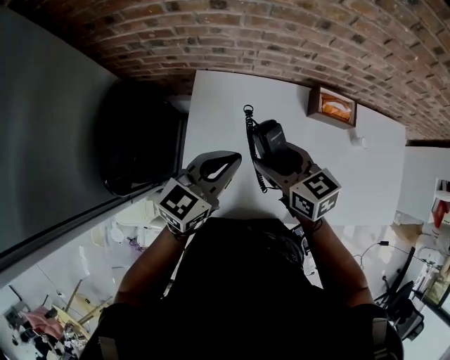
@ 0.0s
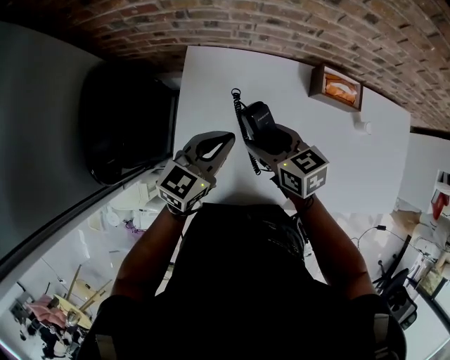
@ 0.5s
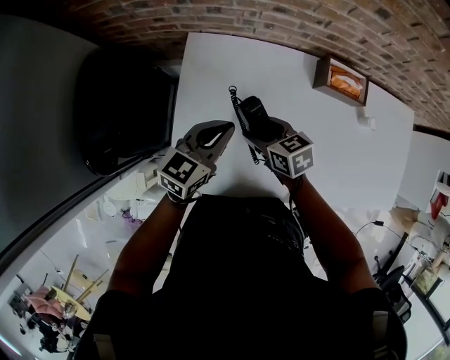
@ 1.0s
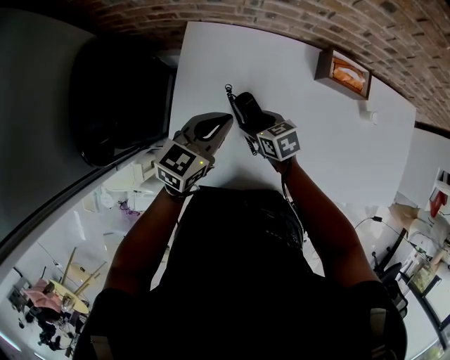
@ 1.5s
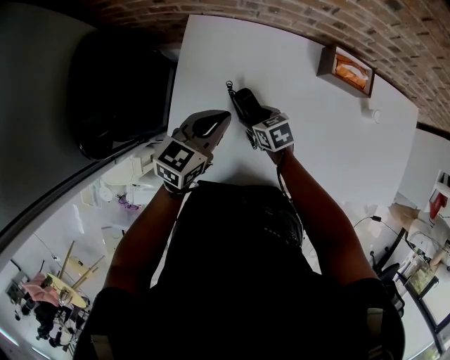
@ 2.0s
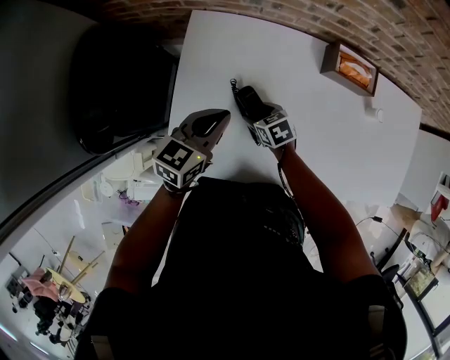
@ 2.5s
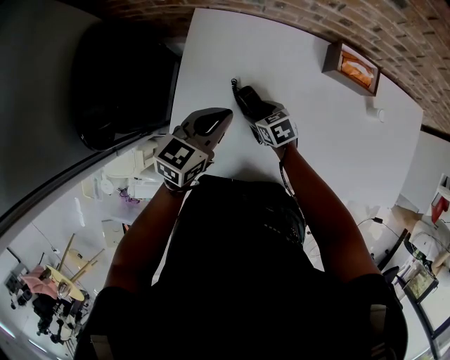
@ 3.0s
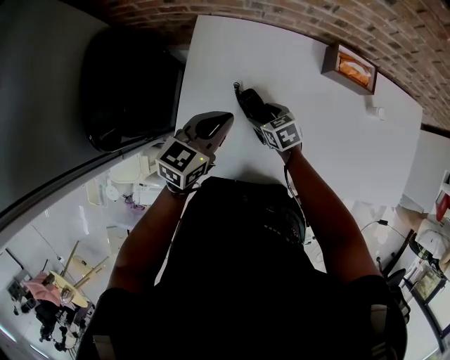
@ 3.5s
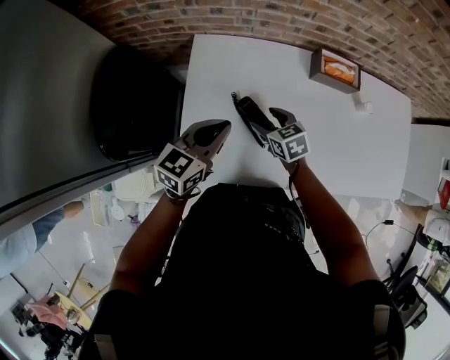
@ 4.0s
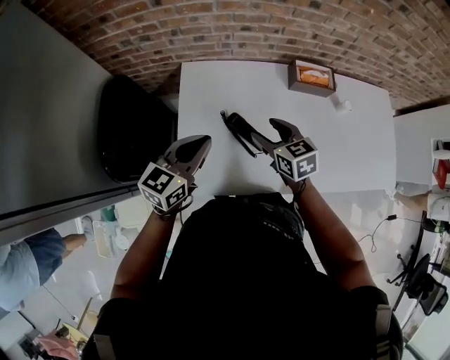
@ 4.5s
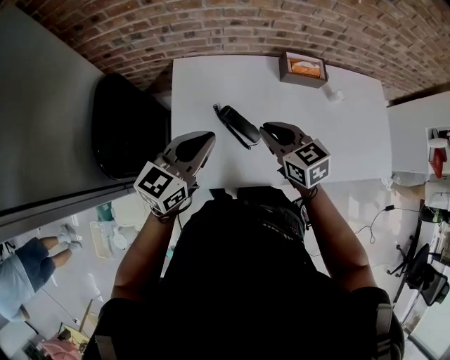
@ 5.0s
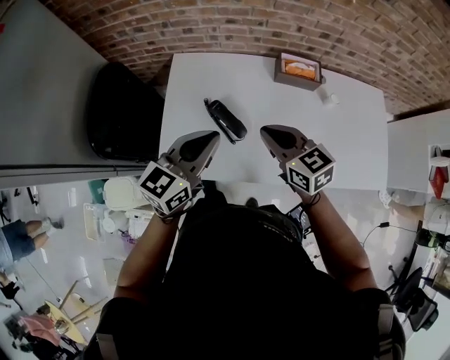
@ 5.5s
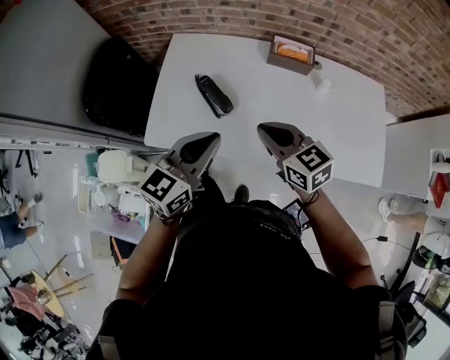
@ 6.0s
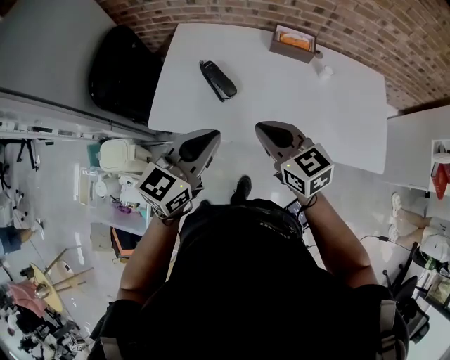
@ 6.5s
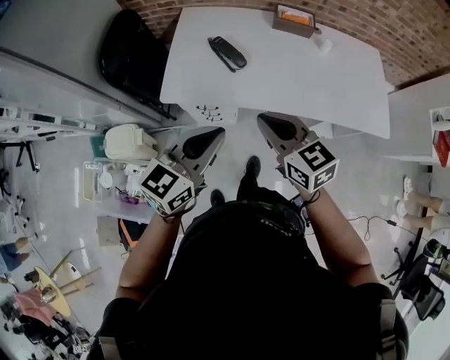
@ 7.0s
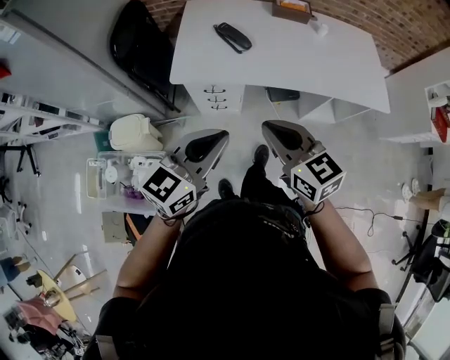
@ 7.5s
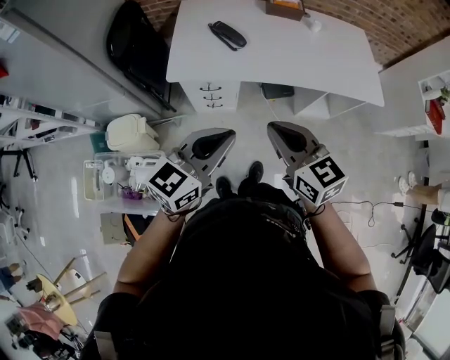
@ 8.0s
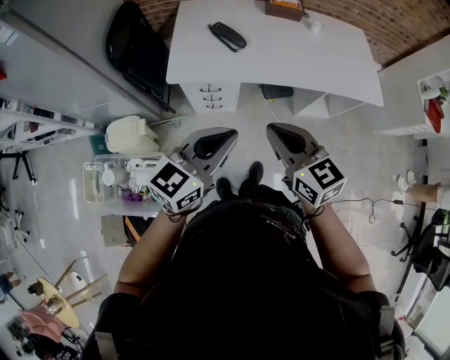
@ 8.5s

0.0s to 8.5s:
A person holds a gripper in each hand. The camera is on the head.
0.0s to 2.0s: The left gripper shifts about 15 cm downward; the right gripper shifts about 30 cm downward, and swivels approximately 30 degrees.
2.0s to 4.0s: The left gripper travels upward by some 5 cm. Meanwhile the right gripper heads upward, covering about 10 cm.
4.0s to 6.5s: The left gripper heads backward, to the right and upward, covering roughly 35 cm. Meanwhile the right gripper shifts some 35 cm backward, upward and to the right, rotates roughly 30 degrees, and closes its fingers.
6.5s to 8.5s: Both grippers move backward, roughly 30 cm.

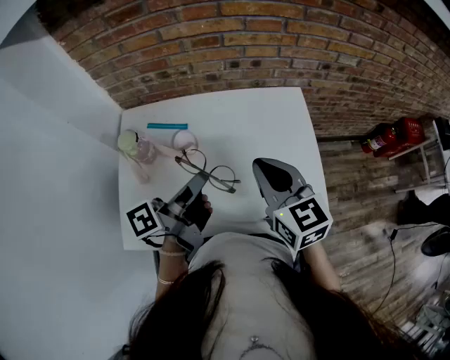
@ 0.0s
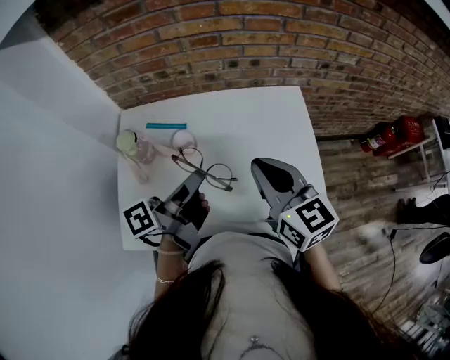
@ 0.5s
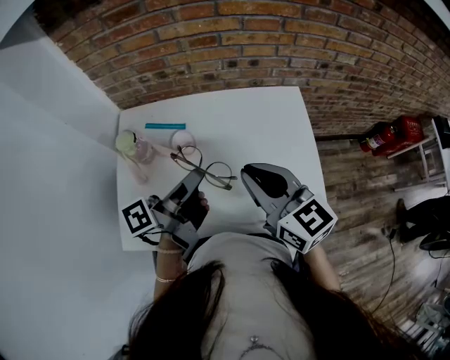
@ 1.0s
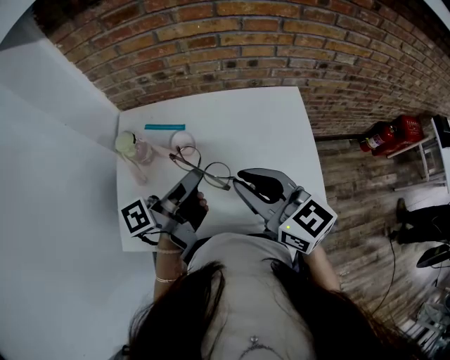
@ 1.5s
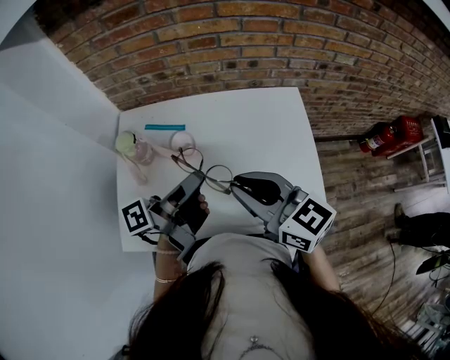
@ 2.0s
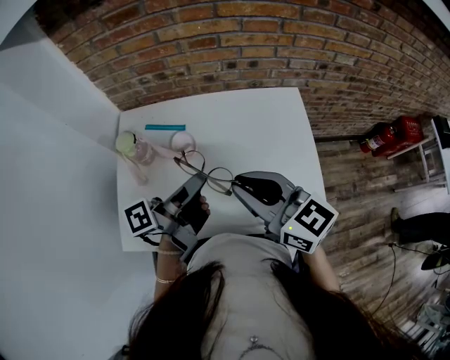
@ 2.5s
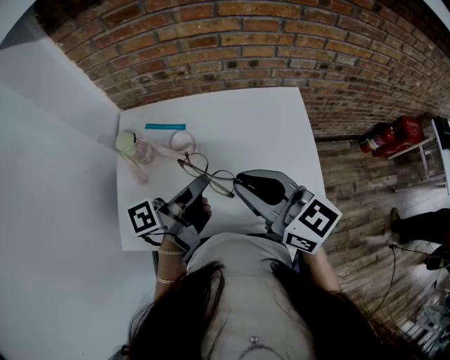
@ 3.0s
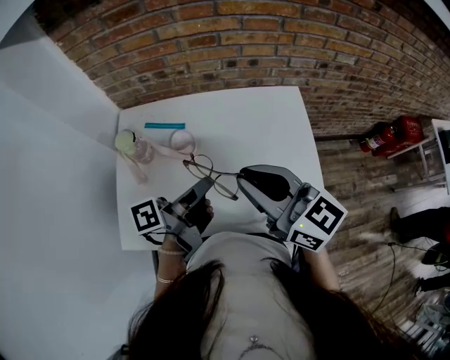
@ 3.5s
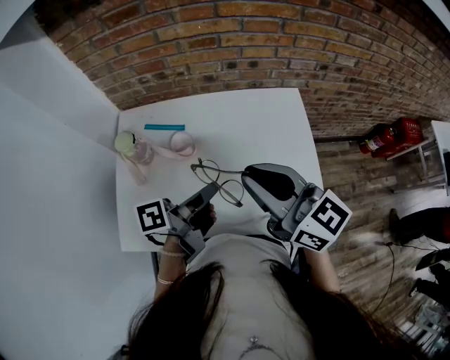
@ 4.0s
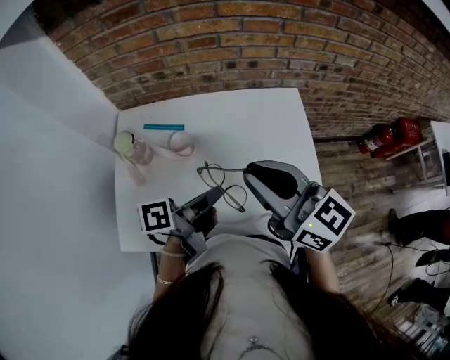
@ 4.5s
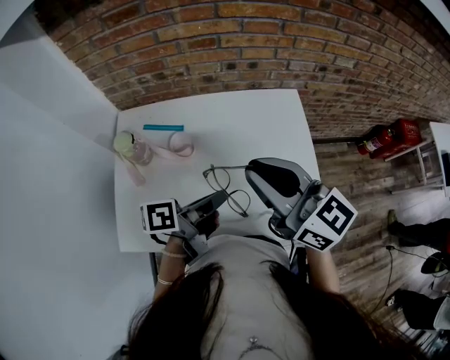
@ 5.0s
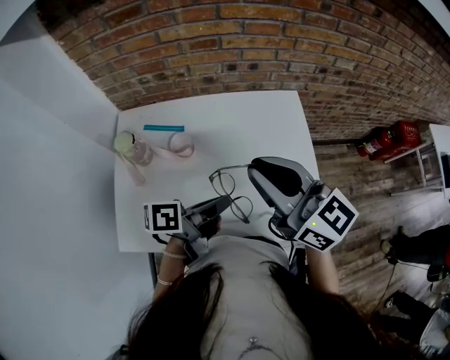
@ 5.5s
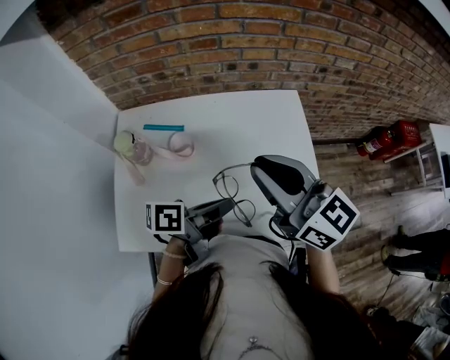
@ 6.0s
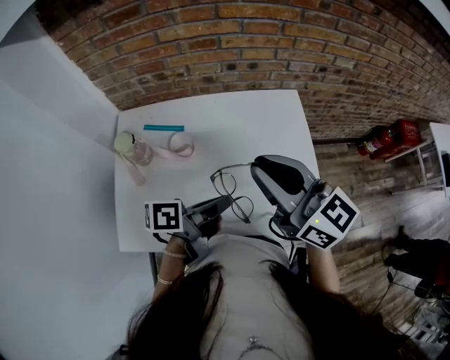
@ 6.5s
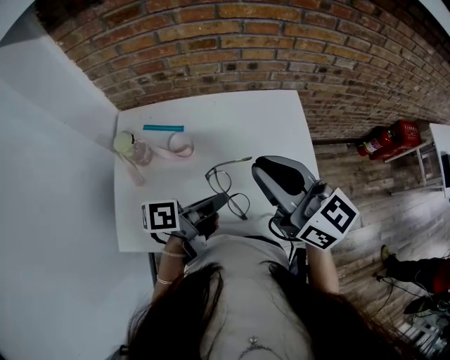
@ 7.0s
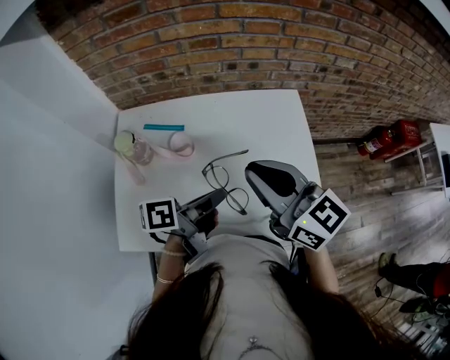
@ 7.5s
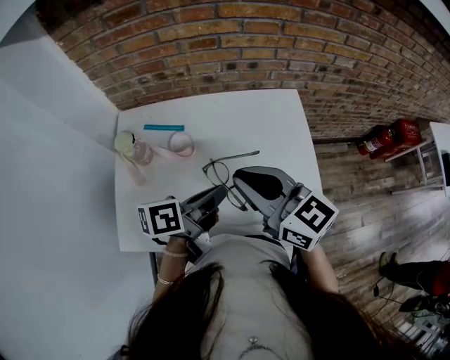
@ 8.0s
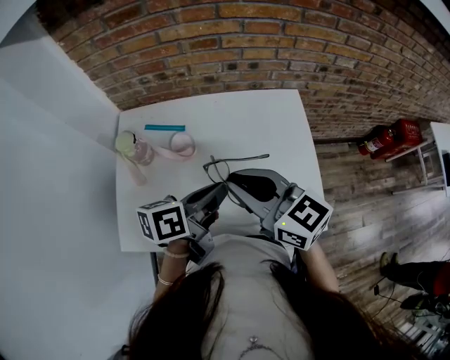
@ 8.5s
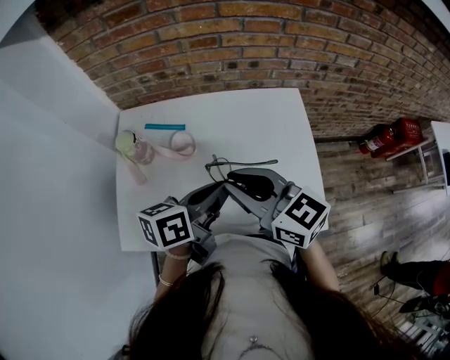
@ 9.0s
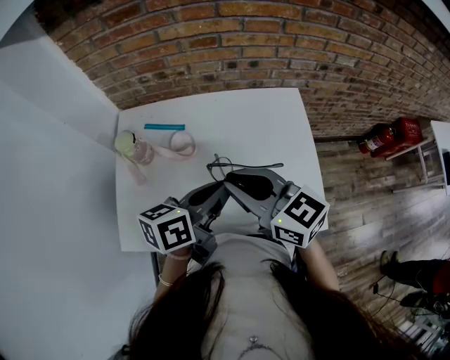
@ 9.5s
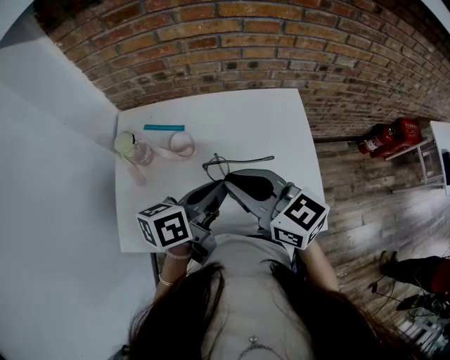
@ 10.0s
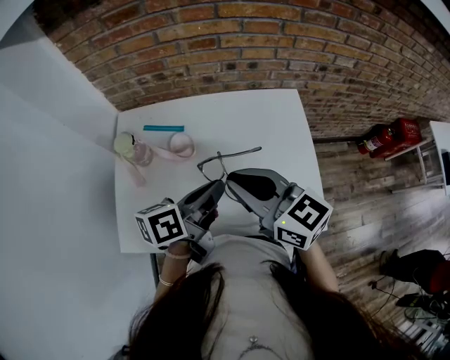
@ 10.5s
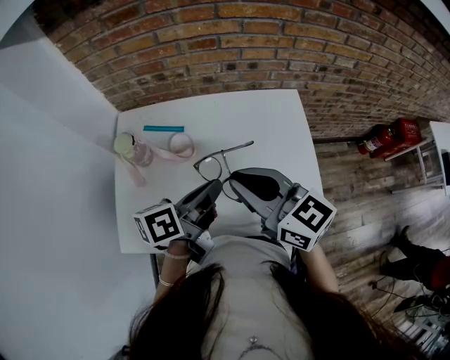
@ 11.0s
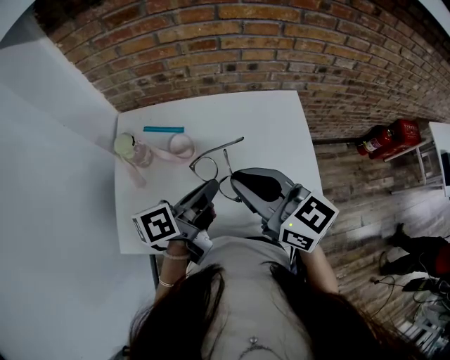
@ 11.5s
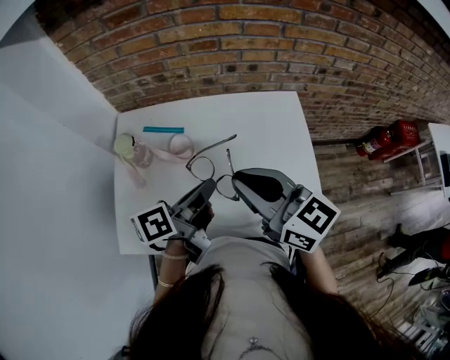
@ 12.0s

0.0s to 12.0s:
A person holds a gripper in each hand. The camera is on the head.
0.0s to 2.0s: The right gripper shifts by about 5 cm, and turns by about 20 degrees.
6.0s to 8.0s: The right gripper moves roughly 5 cm.

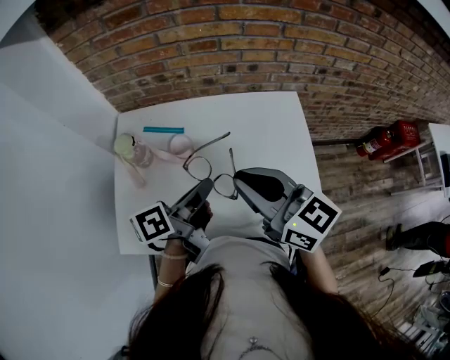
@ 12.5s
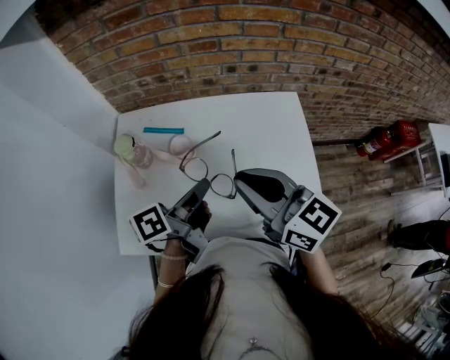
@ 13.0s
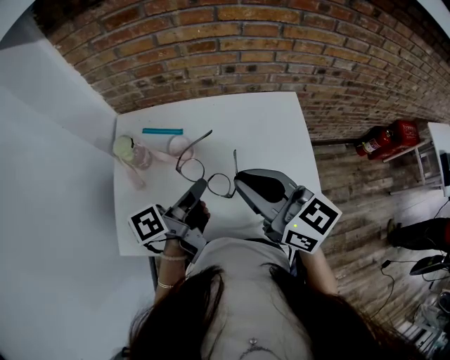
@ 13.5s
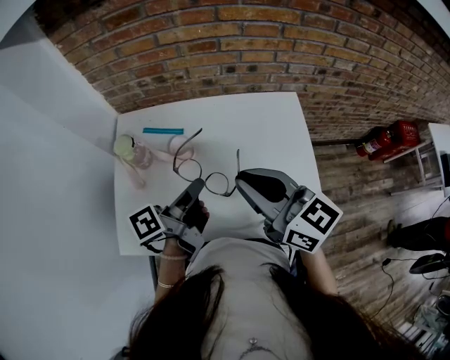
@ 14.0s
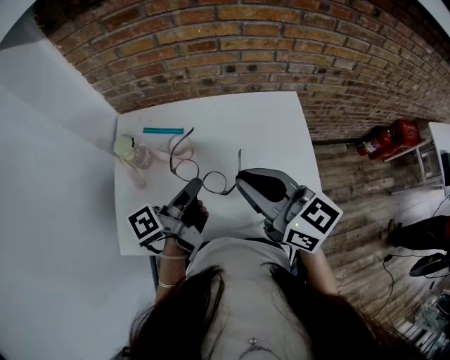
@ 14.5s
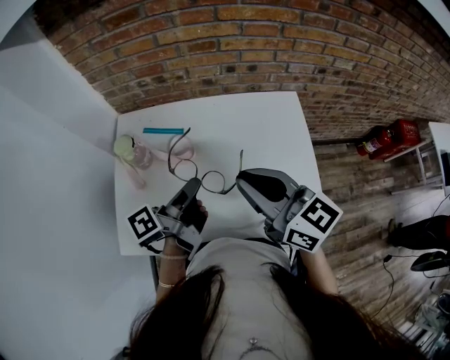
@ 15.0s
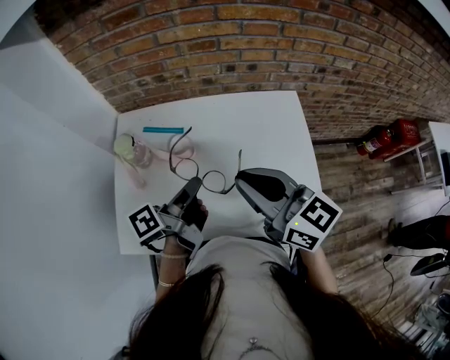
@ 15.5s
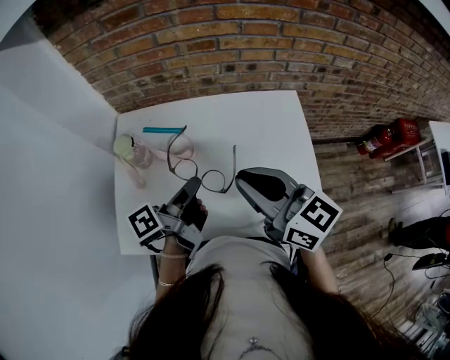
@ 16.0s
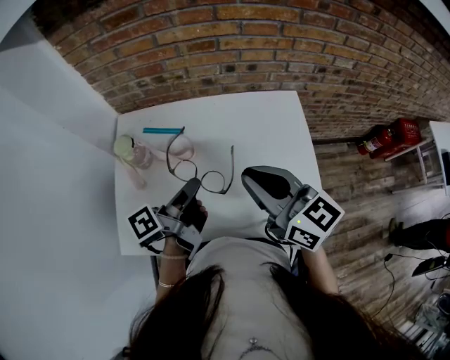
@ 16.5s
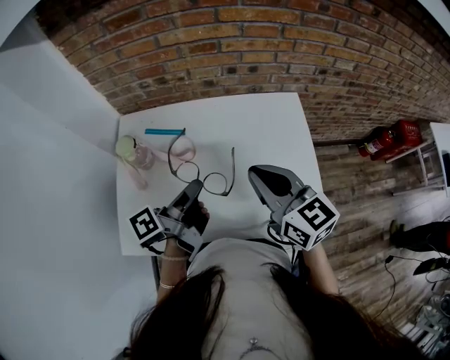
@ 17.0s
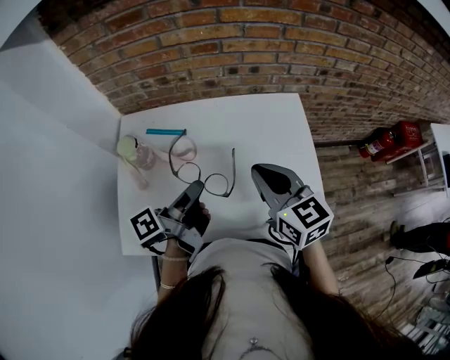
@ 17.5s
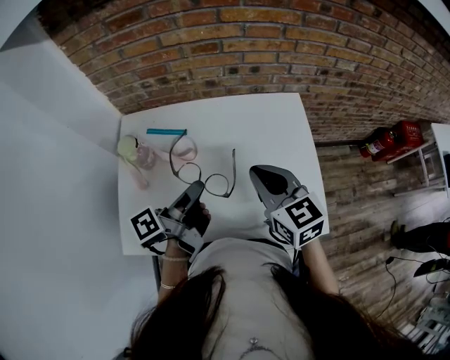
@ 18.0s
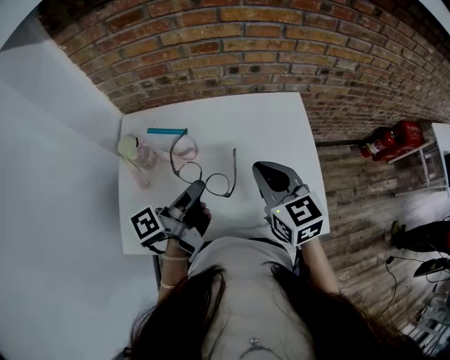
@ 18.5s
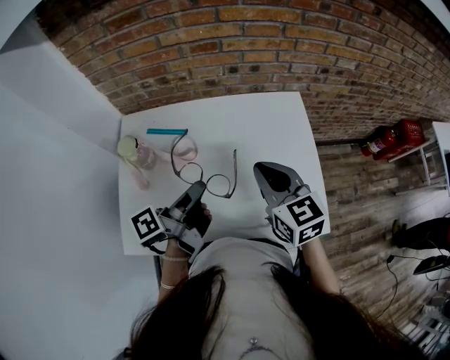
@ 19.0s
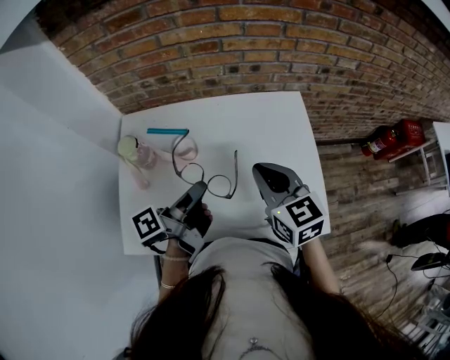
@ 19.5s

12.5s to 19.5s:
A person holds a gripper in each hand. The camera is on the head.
16.0s to 17.5s: The right gripper shifts roughly 5 cm downward.
